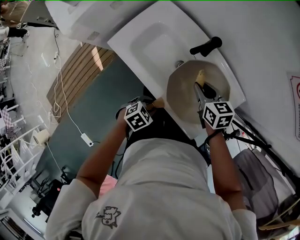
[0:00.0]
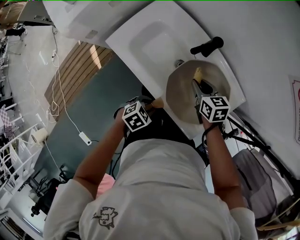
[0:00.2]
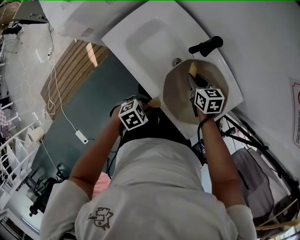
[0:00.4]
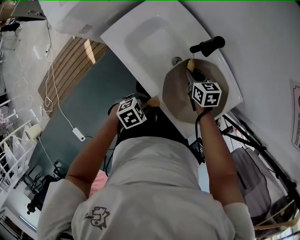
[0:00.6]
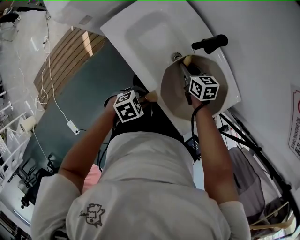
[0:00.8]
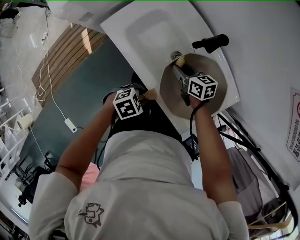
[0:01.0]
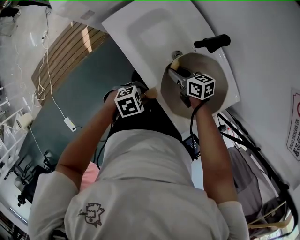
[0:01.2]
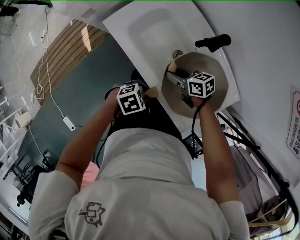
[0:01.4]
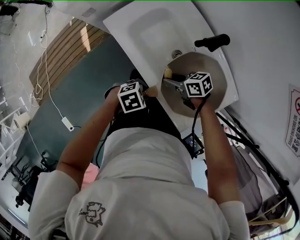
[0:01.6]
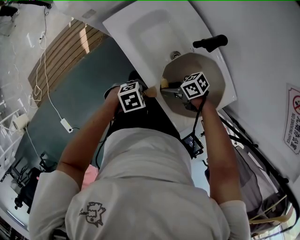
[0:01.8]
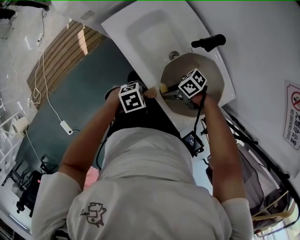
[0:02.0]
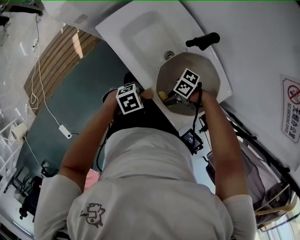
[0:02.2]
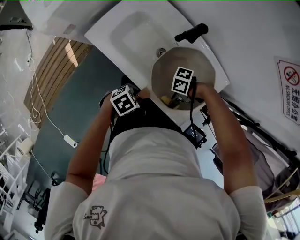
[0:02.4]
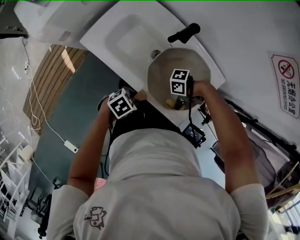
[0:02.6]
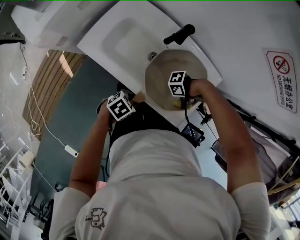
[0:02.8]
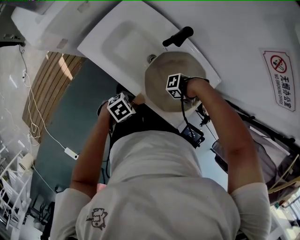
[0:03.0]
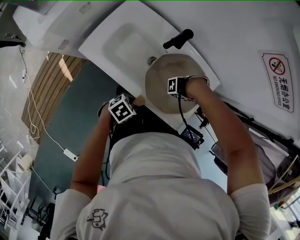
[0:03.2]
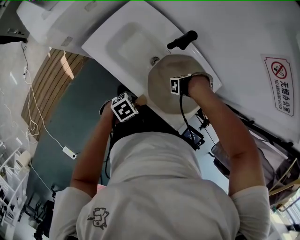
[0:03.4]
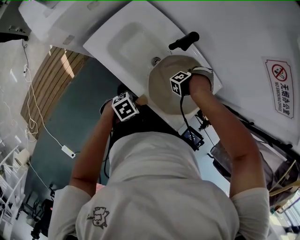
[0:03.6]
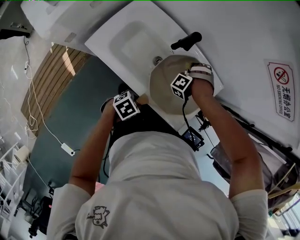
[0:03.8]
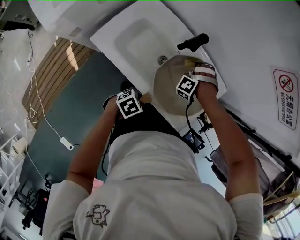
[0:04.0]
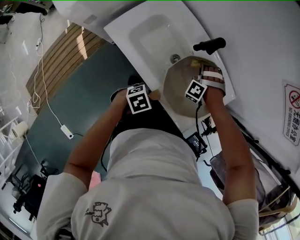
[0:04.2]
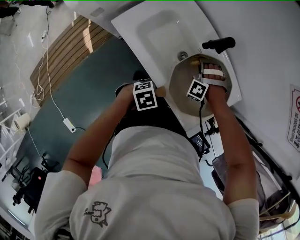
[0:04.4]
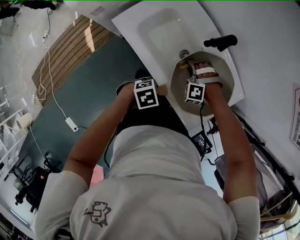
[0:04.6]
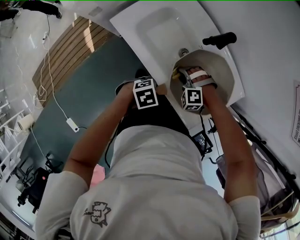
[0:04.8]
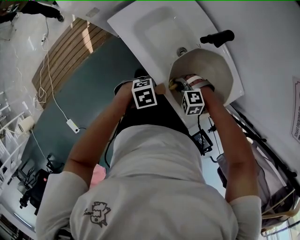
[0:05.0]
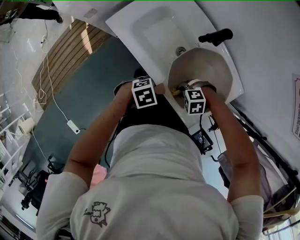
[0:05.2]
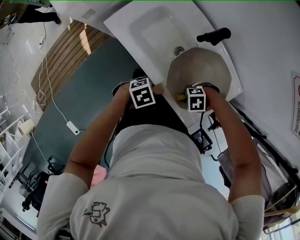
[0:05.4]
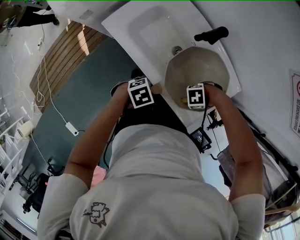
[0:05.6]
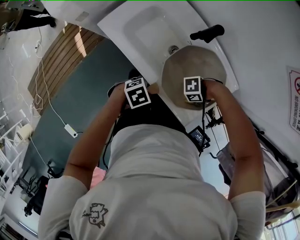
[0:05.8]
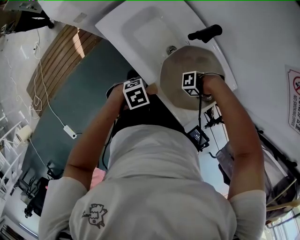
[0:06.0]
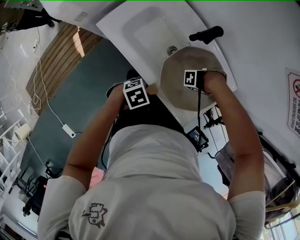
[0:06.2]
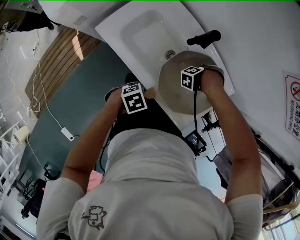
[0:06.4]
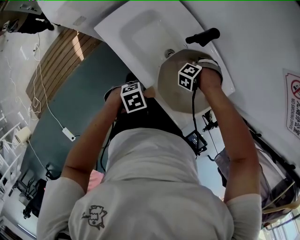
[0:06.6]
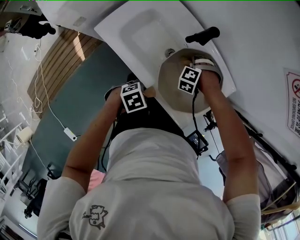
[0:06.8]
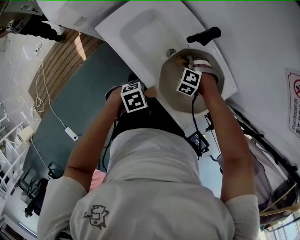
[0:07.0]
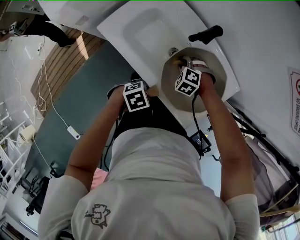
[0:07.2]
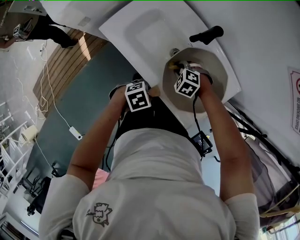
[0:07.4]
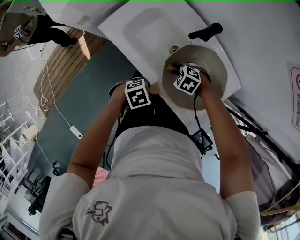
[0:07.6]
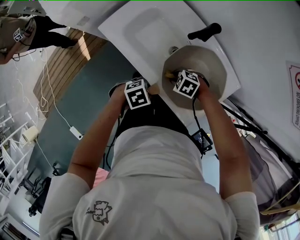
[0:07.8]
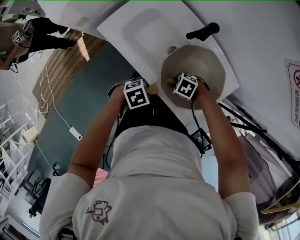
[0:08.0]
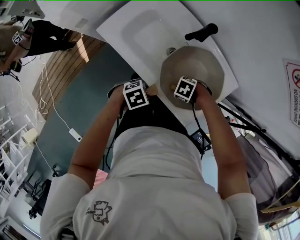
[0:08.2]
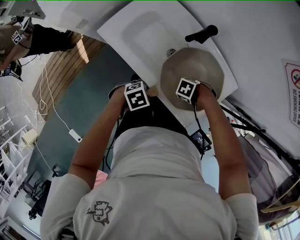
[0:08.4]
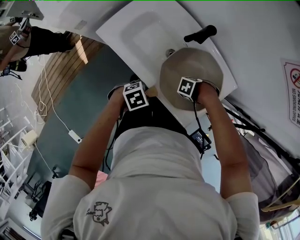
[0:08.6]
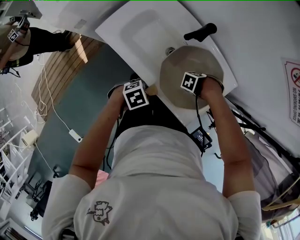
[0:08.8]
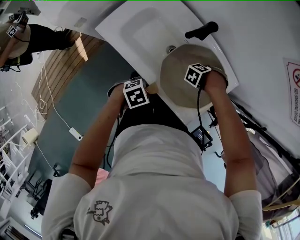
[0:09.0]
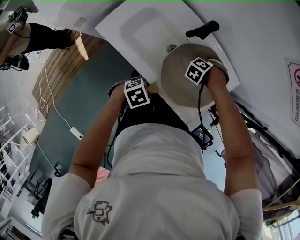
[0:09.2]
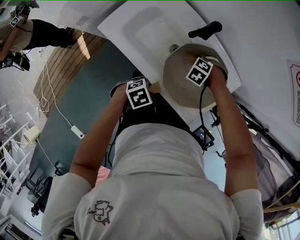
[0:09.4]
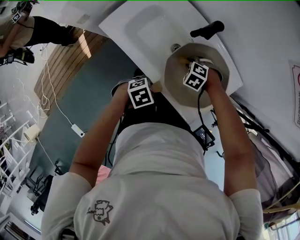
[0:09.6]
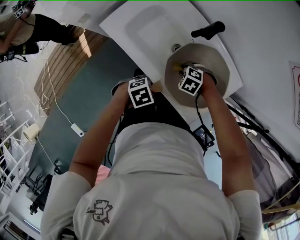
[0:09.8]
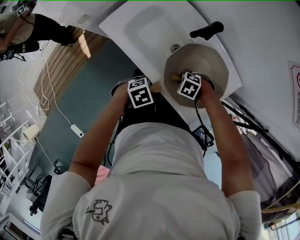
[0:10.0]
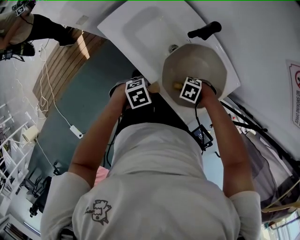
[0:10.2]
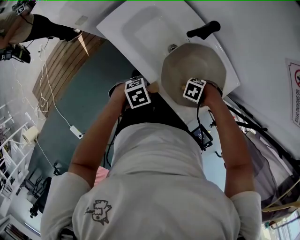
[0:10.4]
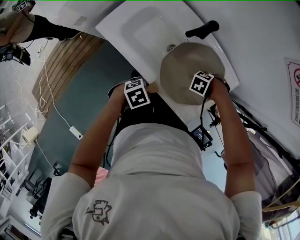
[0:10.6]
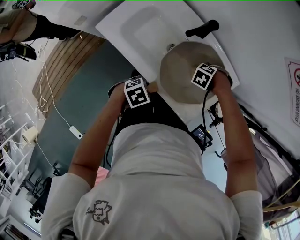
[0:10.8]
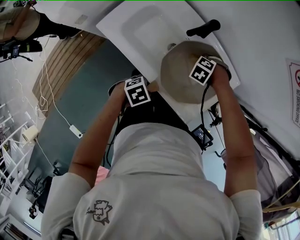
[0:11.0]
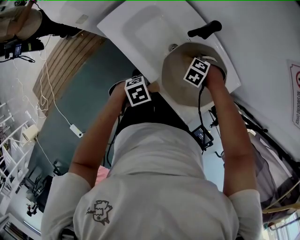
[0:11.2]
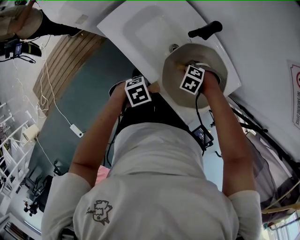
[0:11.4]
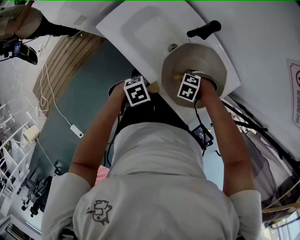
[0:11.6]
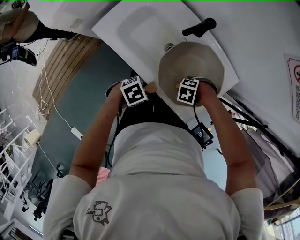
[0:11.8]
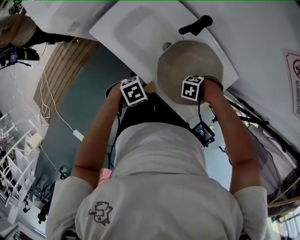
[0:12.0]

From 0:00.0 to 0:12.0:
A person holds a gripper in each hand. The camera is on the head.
From 0:00.0 to 0:01.6: The right gripper shifts by some 15 cm, and swivels about 50 degrees.
From 0:01.6 to 0:03.0: The right gripper changes place by approximately 25 cm, and rotates approximately 90 degrees.
From 0:03.0 to 0:04.4: The right gripper moves about 25 cm, and turns by about 110 degrees.
From 0:04.4 to 0:06.0: The right gripper ends up approximately 25 cm from where it was, and turns by some 100 degrees.
From 0:06.0 to 0:07.6: The right gripper ends up some 25 cm from where it was, and points its fingers some 40 degrees further downward.
From 0:07.6 to 0:09.0: The right gripper changes place by approximately 20 cm, and rotates roughly 50 degrees.
From 0:09.0 to 0:10.4: The right gripper shifts by some 15 cm, and turns by approximately 30 degrees.

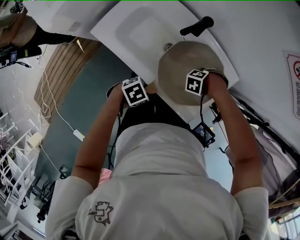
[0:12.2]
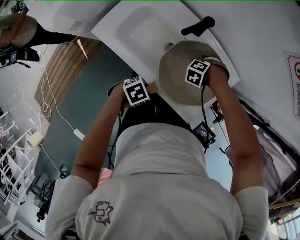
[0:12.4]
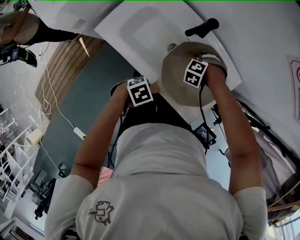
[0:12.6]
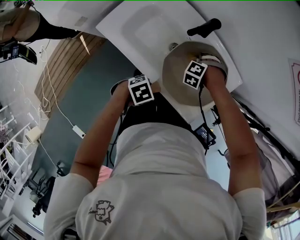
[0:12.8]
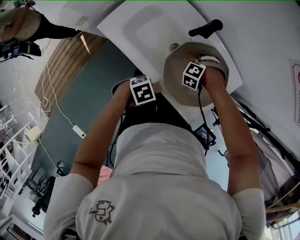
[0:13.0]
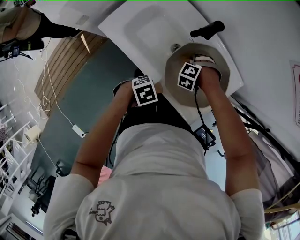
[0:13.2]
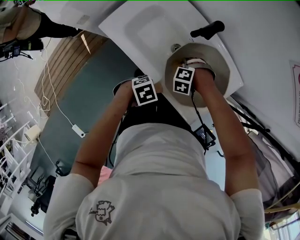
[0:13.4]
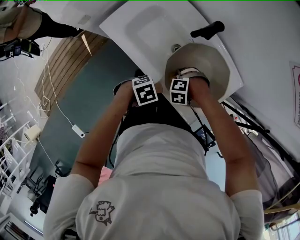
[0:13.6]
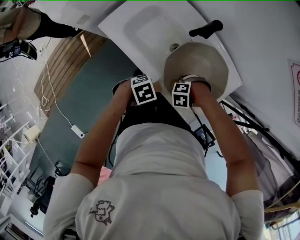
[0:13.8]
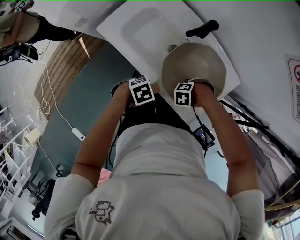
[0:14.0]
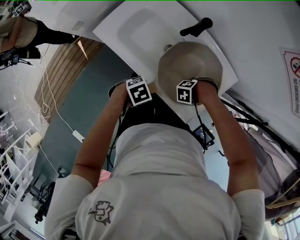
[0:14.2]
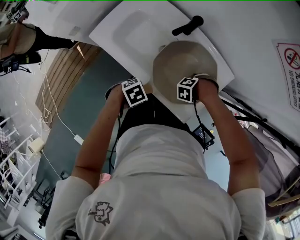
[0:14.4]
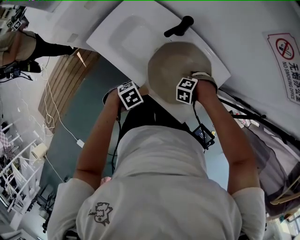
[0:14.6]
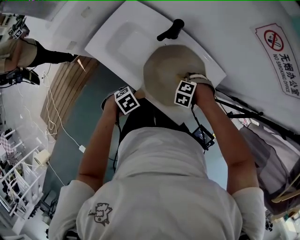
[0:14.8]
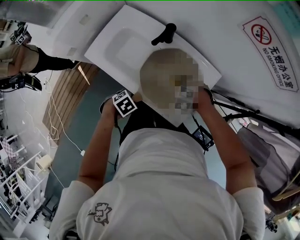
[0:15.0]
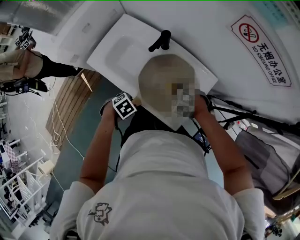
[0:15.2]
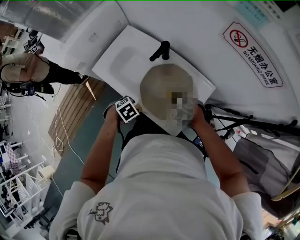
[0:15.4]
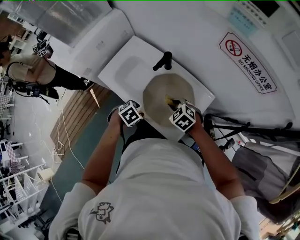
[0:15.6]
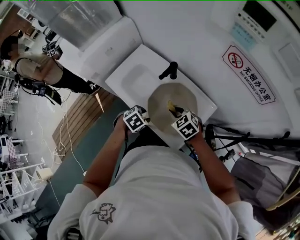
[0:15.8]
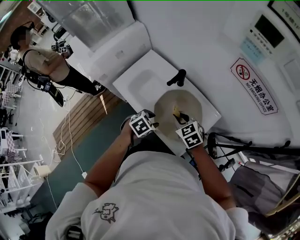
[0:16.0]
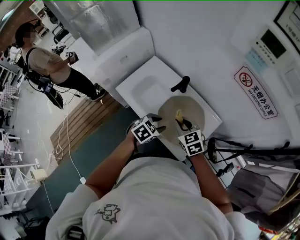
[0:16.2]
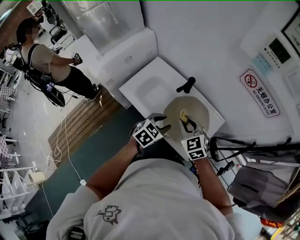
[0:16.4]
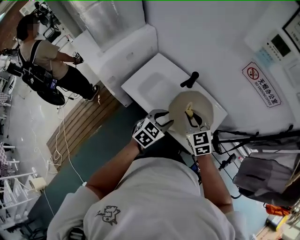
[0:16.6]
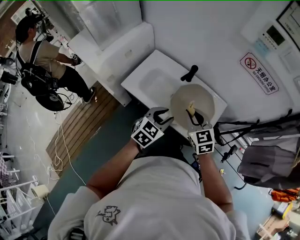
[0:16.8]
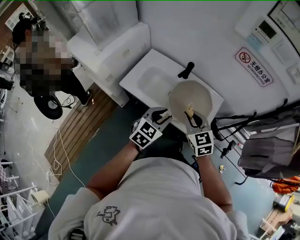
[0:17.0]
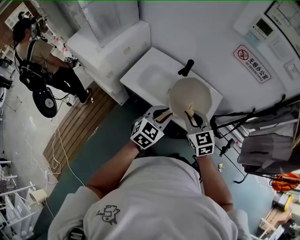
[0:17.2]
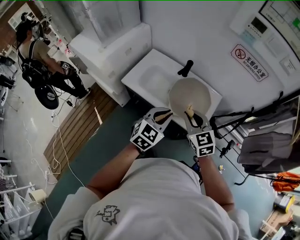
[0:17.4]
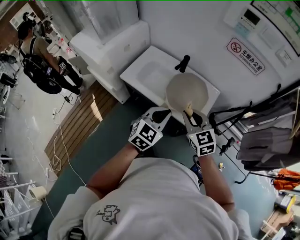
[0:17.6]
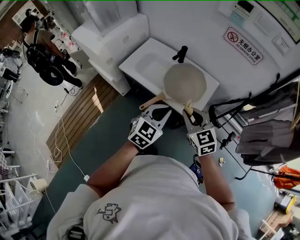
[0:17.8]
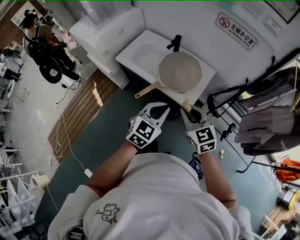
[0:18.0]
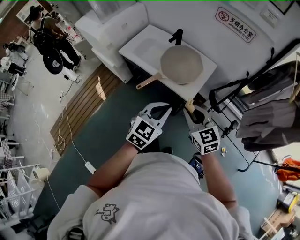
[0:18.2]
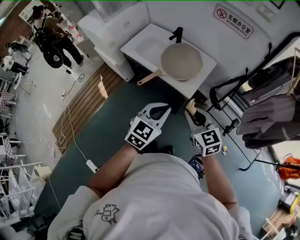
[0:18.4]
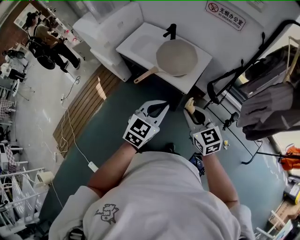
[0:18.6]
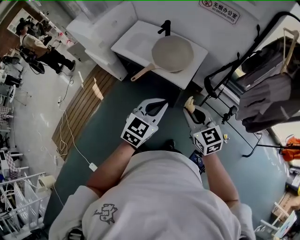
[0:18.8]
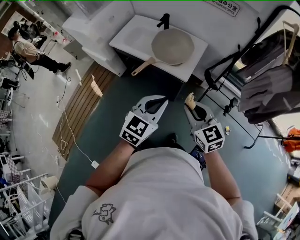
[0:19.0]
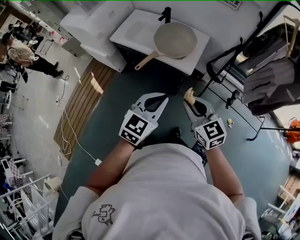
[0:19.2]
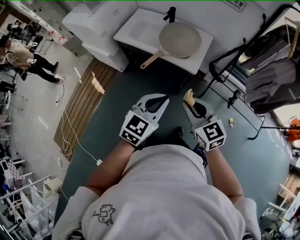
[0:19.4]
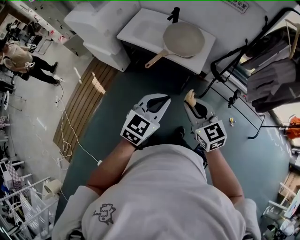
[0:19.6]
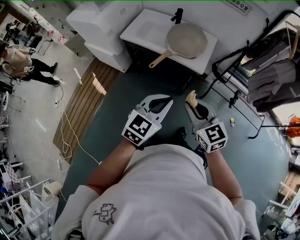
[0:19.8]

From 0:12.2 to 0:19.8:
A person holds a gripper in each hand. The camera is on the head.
From 0:12.2 to 0:13.8: The right gripper changes place by approximately 15 cm, and rotates roughly 20 degrees.
From 0:13.8 to 0:15.2: The right gripper moves upward, approximately 10 cm, and swivels about 40 degrees.
From 0:15.2 to 0:16.8: Both grippers move upward, some 25 cm. The left gripper tips its fingers upward by some 50 degrees; the right gripper tilts its fingers some 40 degrees upward.
From 0:16.8 to 0:18.2: The grippers both shift backward and to the right by roughly 30 cm. The left gripper closes up.
From 0:18.2 to 0:19.8: The two grippers go roughly 20 cm backward and to the left.

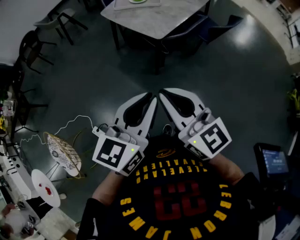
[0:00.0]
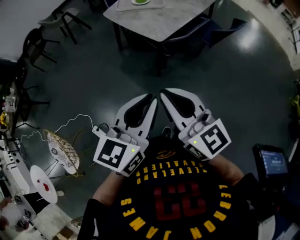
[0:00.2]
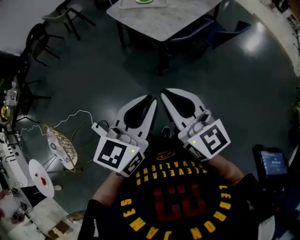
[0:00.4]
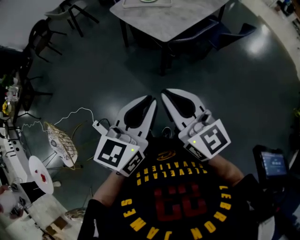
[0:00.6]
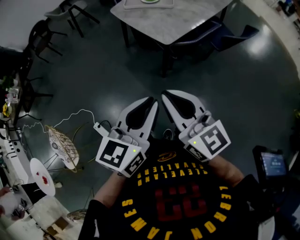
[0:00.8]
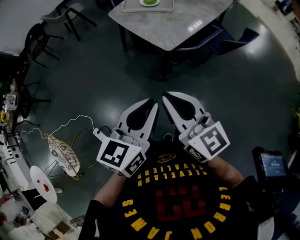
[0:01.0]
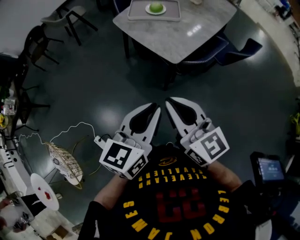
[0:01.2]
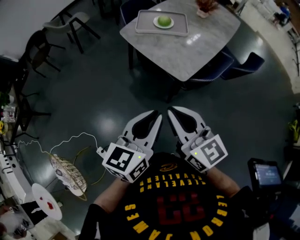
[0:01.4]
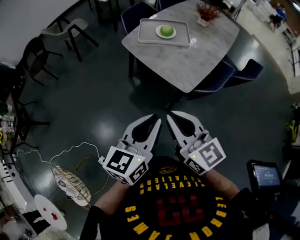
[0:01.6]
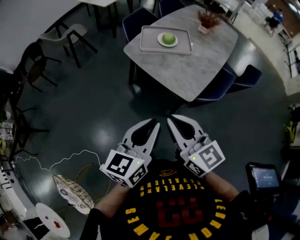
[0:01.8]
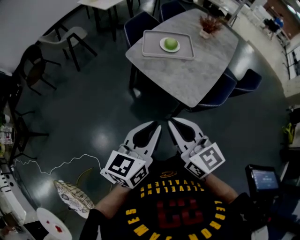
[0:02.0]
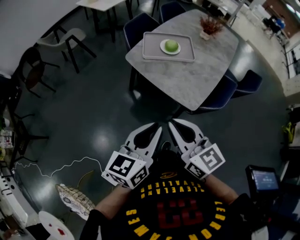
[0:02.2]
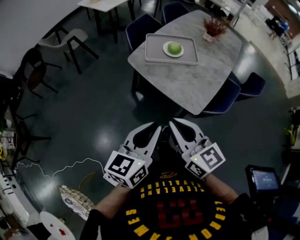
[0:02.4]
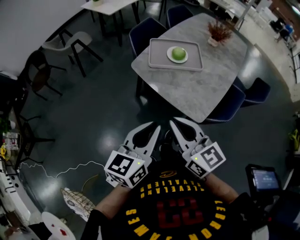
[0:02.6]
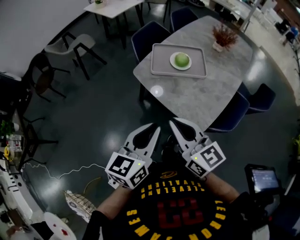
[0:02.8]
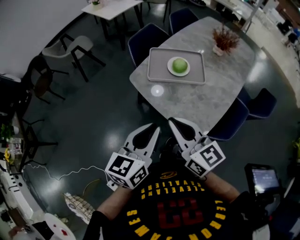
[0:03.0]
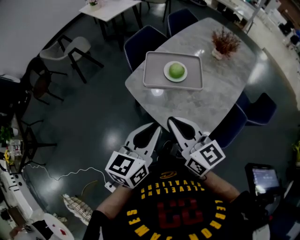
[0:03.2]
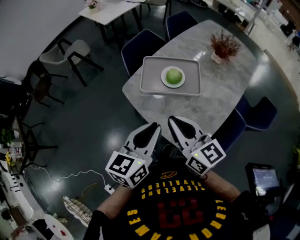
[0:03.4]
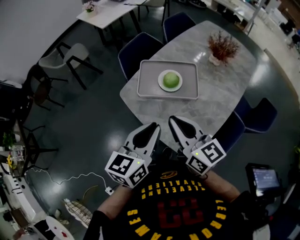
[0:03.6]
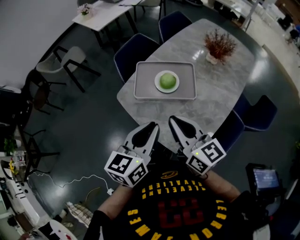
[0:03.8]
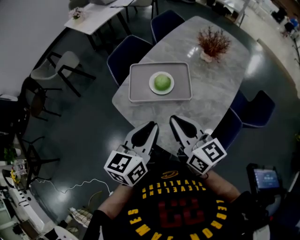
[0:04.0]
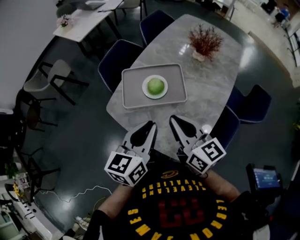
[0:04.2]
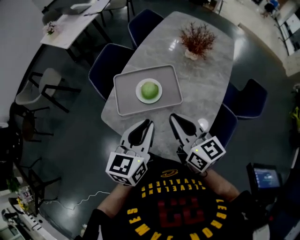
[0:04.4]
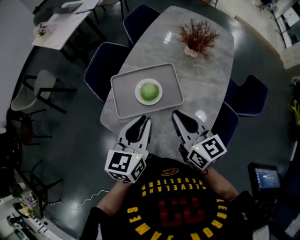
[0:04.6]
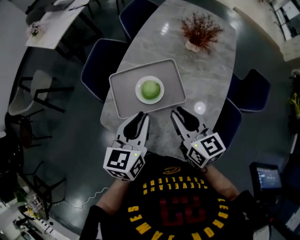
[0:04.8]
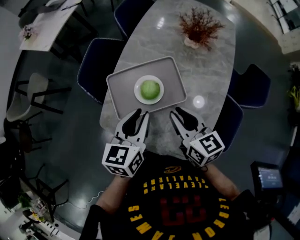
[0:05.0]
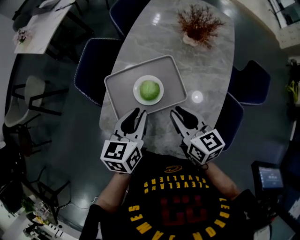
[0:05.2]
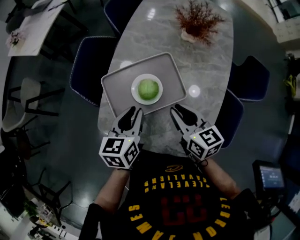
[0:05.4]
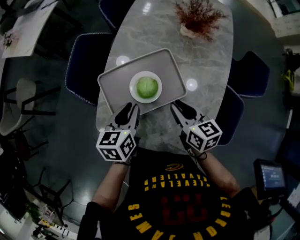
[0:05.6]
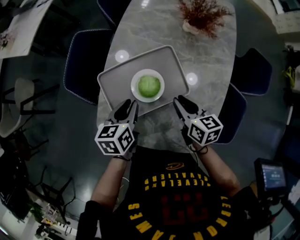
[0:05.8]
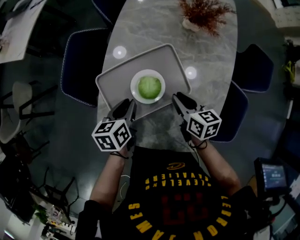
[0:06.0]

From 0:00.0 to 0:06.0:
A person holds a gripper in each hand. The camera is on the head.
From 0:00.0 to 0:01.6: Both grippers travel together forward, approximately 25 cm.
From 0:01.6 to 0:03.0: Both grippers move forward, about 25 cm.
From 0:03.0 to 0:04.4: The grippers both shift forward and to the right by about 25 cm.
From 0:04.4 to 0:06.0: The right gripper is displaced downward by approximately 20 cm, and angles its fingers downward, by about 30 degrees; the left gripper goes approximately 25 cm downward, forward and to the left, and changes its angle by approximately 30 degrees.
